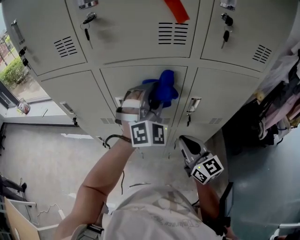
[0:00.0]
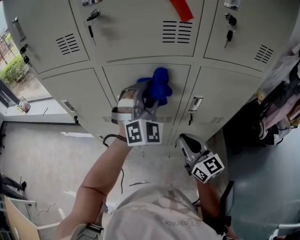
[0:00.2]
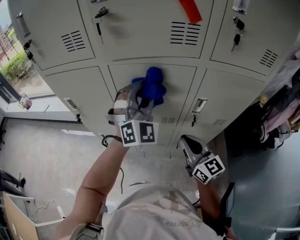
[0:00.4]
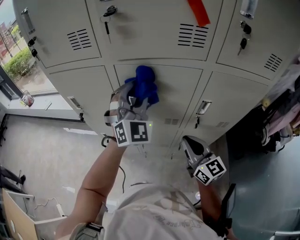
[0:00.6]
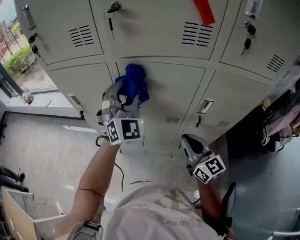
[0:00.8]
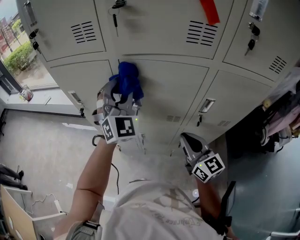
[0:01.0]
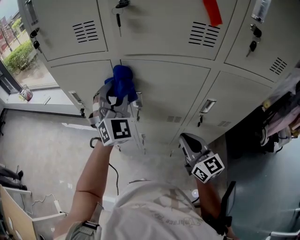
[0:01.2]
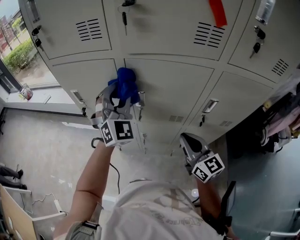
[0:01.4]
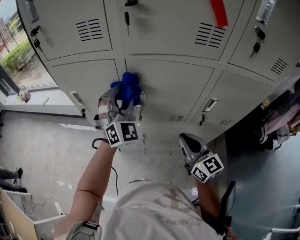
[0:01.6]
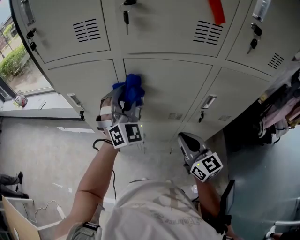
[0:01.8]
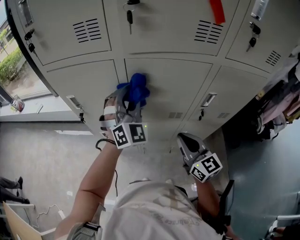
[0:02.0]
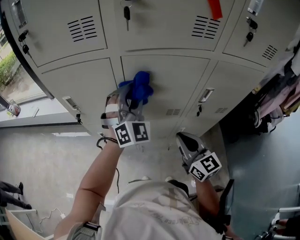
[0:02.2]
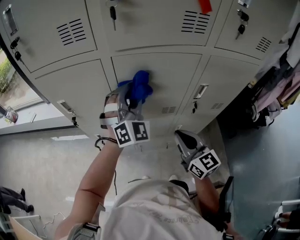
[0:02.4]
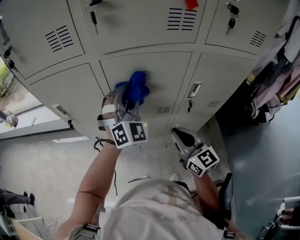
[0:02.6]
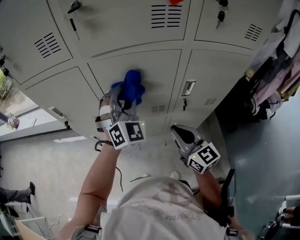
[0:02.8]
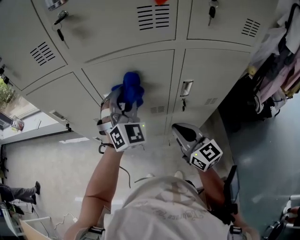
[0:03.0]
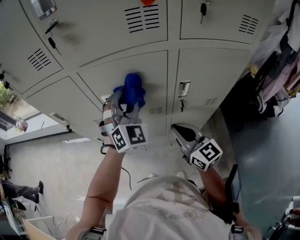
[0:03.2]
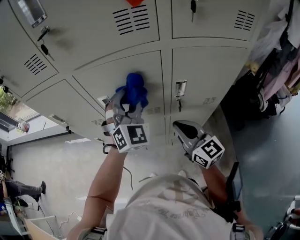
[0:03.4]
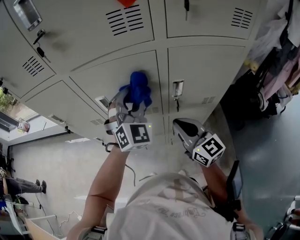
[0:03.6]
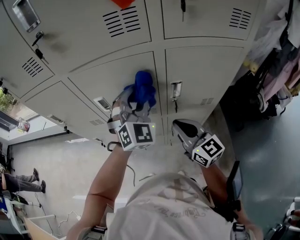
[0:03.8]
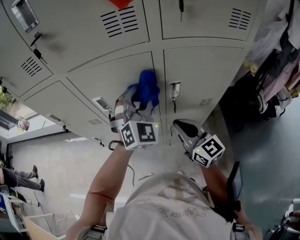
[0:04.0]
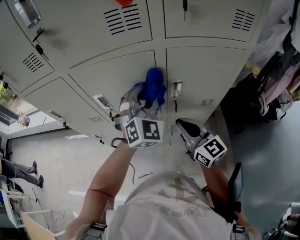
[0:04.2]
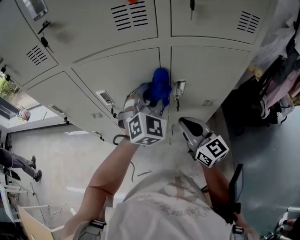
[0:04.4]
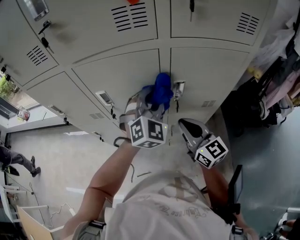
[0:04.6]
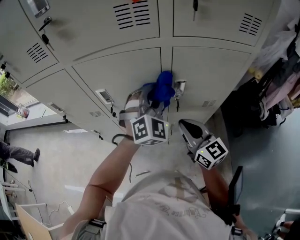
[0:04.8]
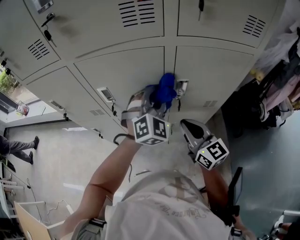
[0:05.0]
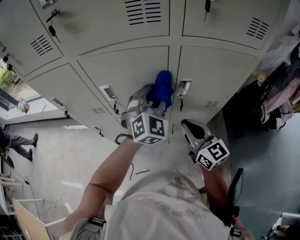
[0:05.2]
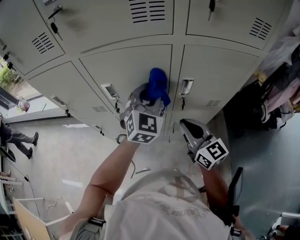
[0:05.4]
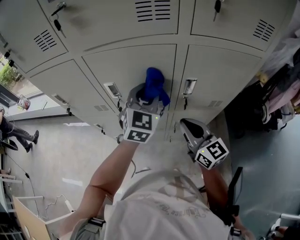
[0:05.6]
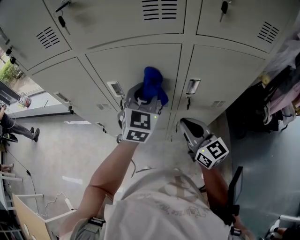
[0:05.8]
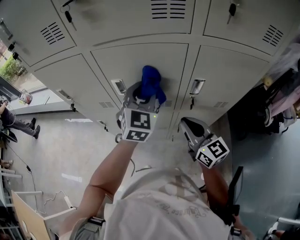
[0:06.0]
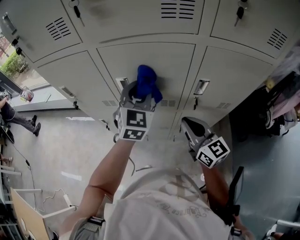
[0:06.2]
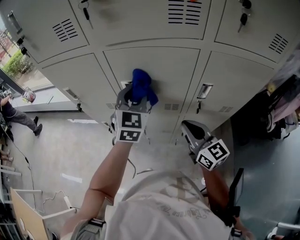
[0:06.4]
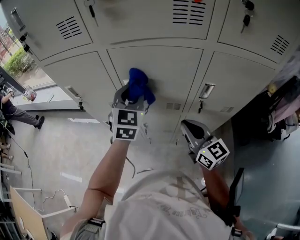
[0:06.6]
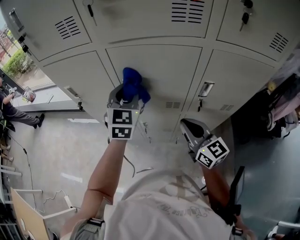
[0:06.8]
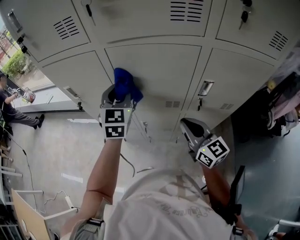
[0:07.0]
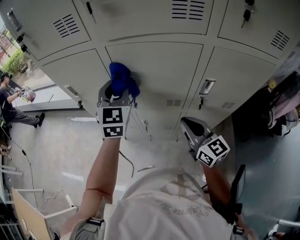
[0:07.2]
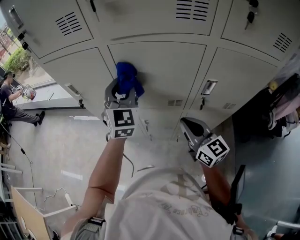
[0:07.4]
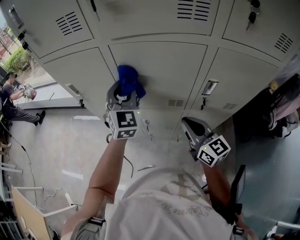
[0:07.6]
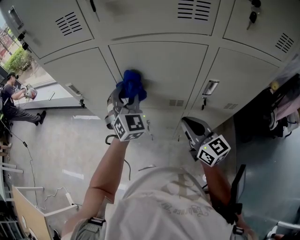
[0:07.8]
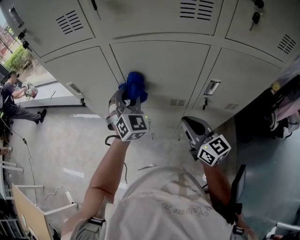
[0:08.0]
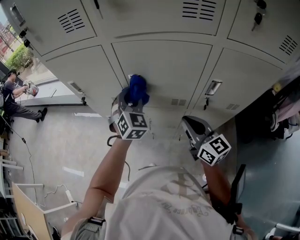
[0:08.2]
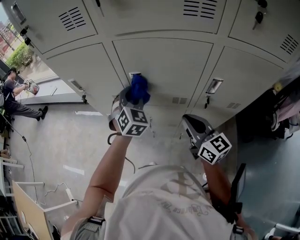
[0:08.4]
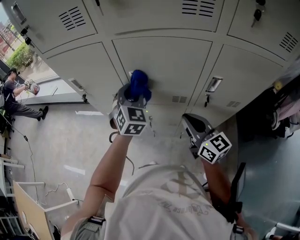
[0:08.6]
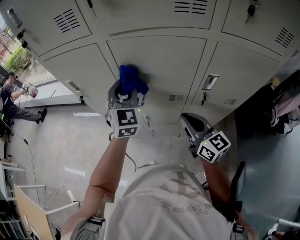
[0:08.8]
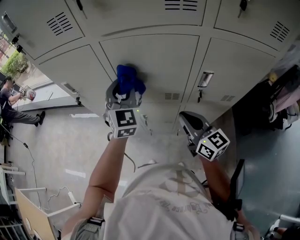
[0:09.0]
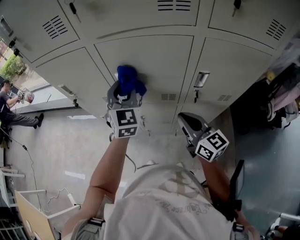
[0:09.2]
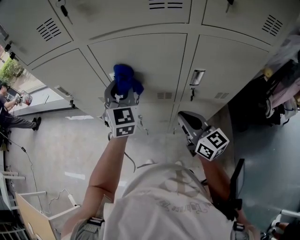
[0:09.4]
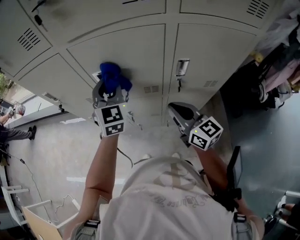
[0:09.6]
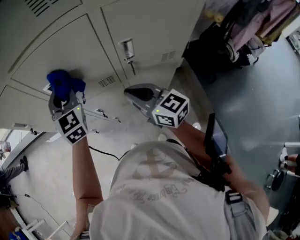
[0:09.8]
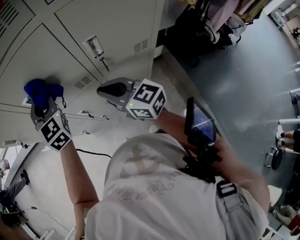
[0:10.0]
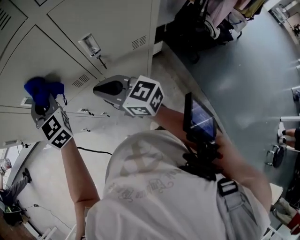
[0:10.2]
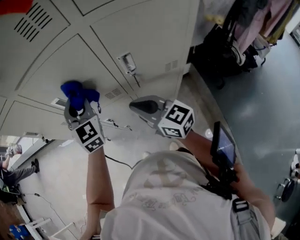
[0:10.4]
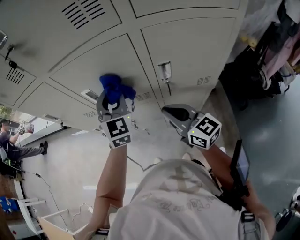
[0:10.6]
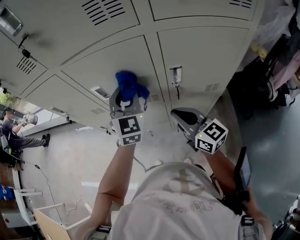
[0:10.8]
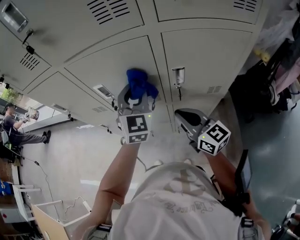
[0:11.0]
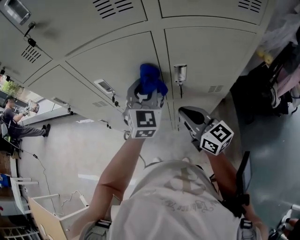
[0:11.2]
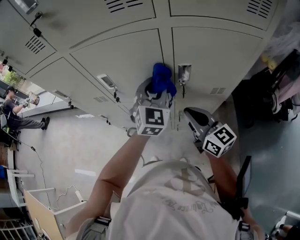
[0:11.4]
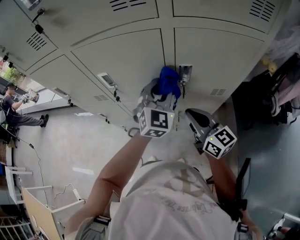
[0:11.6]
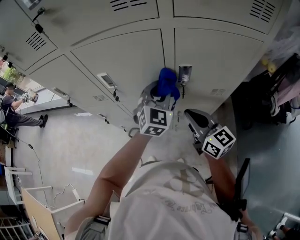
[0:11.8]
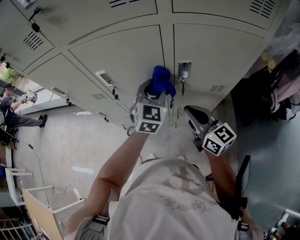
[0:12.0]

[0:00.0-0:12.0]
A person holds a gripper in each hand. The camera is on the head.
0:00.0 to 0:01.6: The right gripper travels to the left by roughly 5 cm; the left gripper is displaced to the left by about 20 cm.
0:01.6 to 0:03.0: The left gripper goes roughly 10 cm to the right.
0:03.0 to 0:04.4: The right gripper goes about 5 cm to the right. Meanwhile the left gripper moves to the right, about 15 cm.
0:04.4 to 0:06.0: The left gripper shifts about 10 cm to the left, and changes its angle by roughly 20 degrees.
0:06.0 to 0:07.6: The left gripper goes about 15 cm to the left.
0:07.6 to 0:09.0: The left gripper reaches roughly 10 cm downward, then returns.
0:09.0 to 0:10.4: The left gripper goes some 10 cm to the right.
0:10.4 to 0:12.0: The right gripper heads to the right, covering roughly 5 cm. The left gripper shifts about 10 cm to the right and downward.

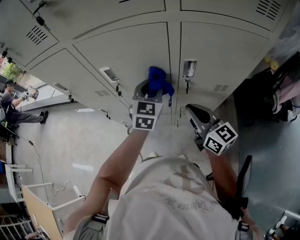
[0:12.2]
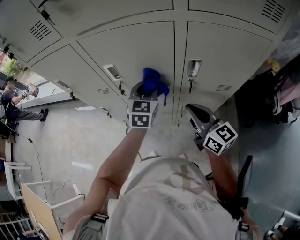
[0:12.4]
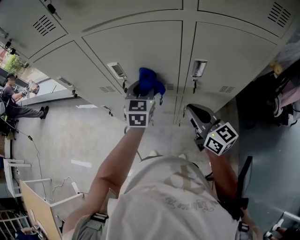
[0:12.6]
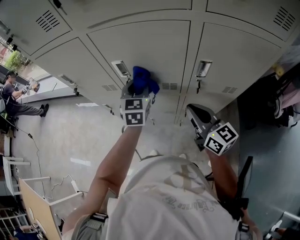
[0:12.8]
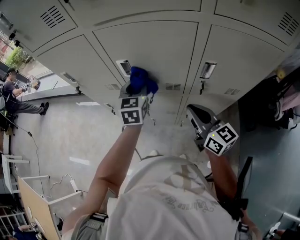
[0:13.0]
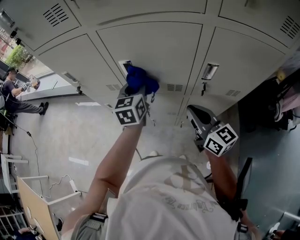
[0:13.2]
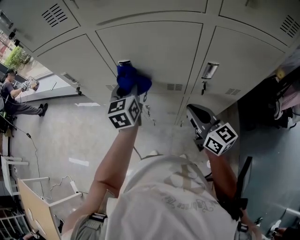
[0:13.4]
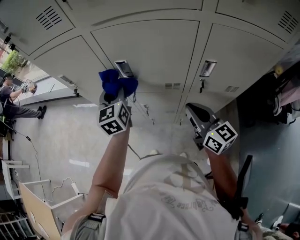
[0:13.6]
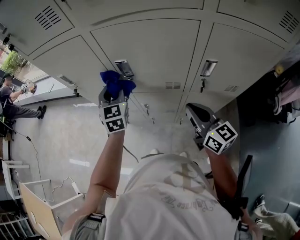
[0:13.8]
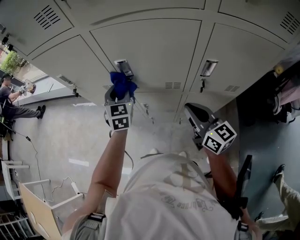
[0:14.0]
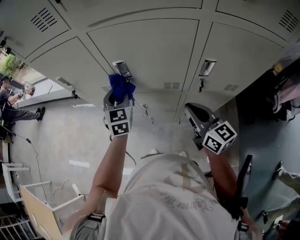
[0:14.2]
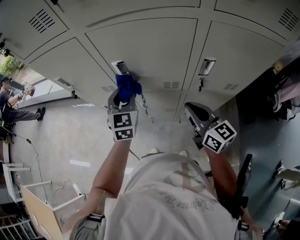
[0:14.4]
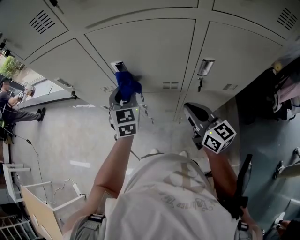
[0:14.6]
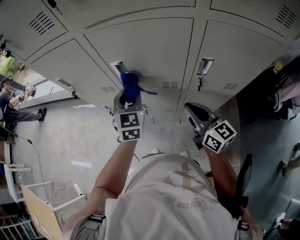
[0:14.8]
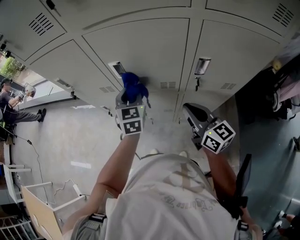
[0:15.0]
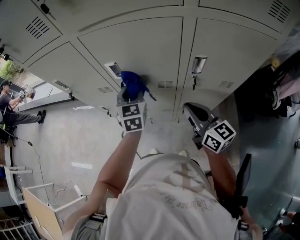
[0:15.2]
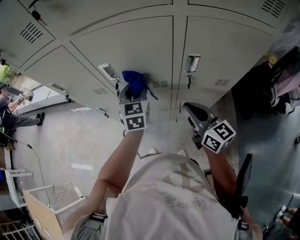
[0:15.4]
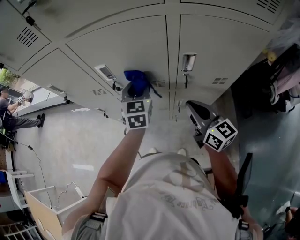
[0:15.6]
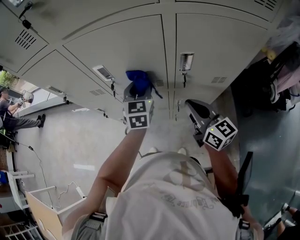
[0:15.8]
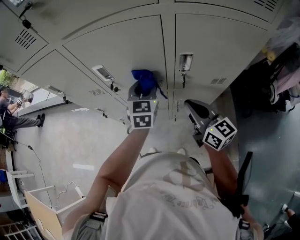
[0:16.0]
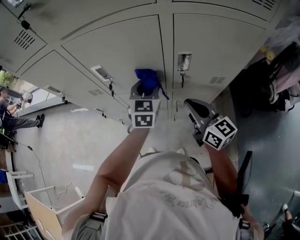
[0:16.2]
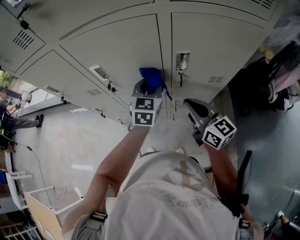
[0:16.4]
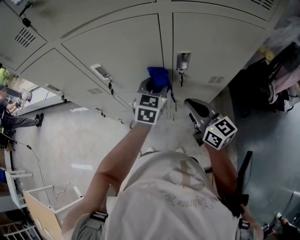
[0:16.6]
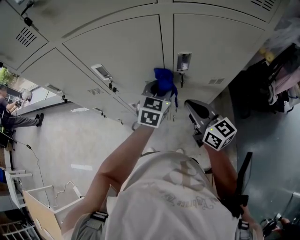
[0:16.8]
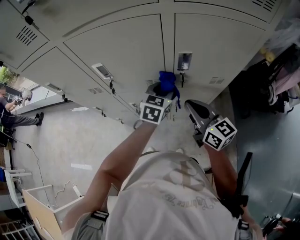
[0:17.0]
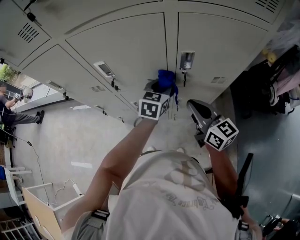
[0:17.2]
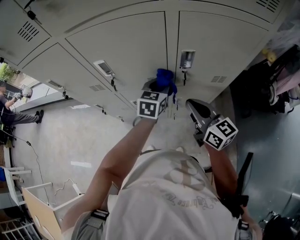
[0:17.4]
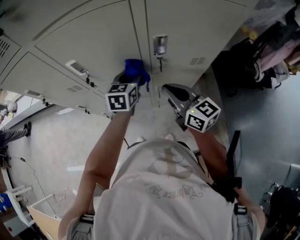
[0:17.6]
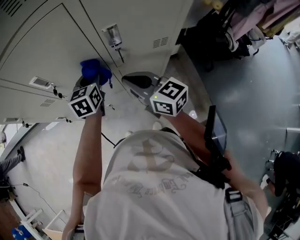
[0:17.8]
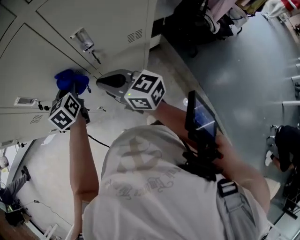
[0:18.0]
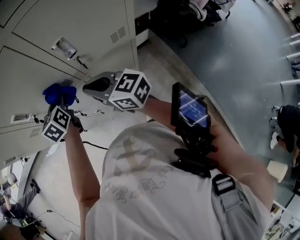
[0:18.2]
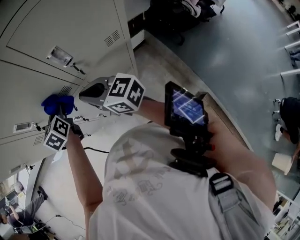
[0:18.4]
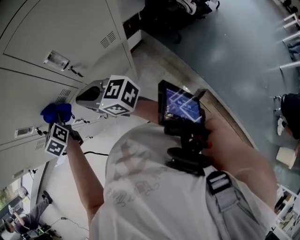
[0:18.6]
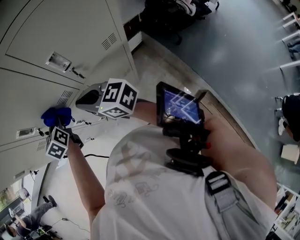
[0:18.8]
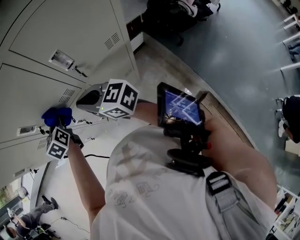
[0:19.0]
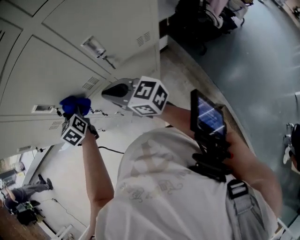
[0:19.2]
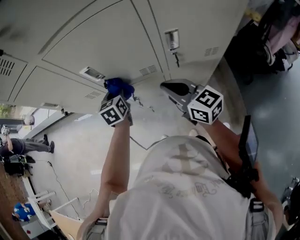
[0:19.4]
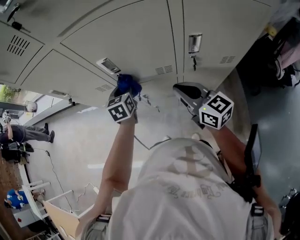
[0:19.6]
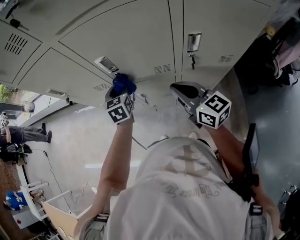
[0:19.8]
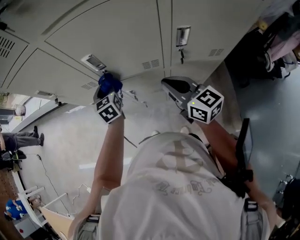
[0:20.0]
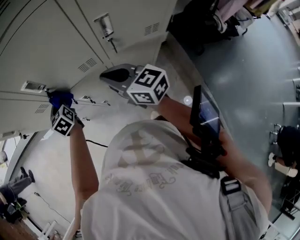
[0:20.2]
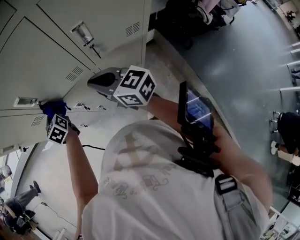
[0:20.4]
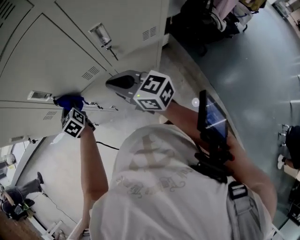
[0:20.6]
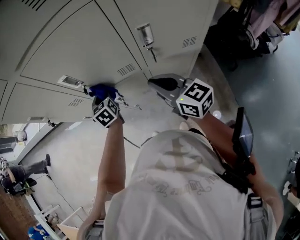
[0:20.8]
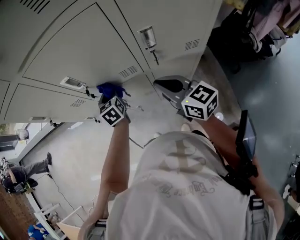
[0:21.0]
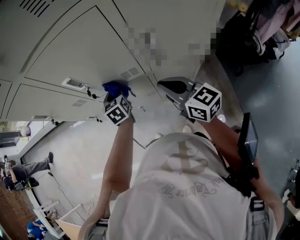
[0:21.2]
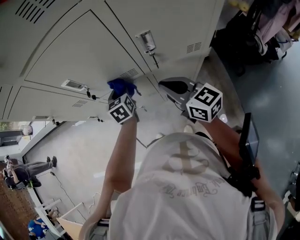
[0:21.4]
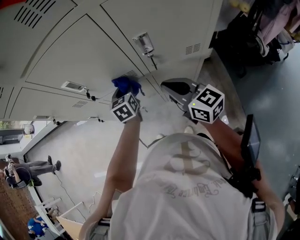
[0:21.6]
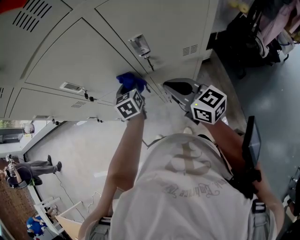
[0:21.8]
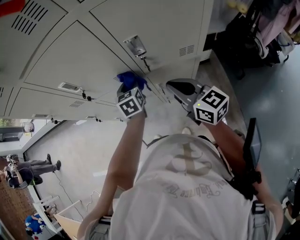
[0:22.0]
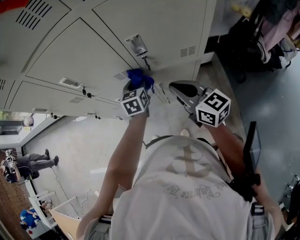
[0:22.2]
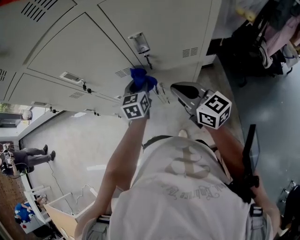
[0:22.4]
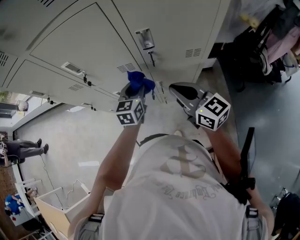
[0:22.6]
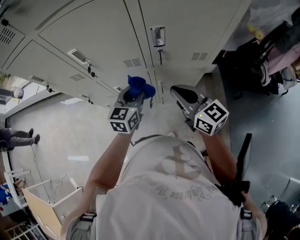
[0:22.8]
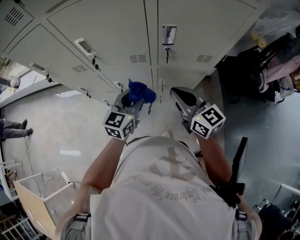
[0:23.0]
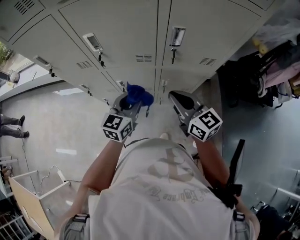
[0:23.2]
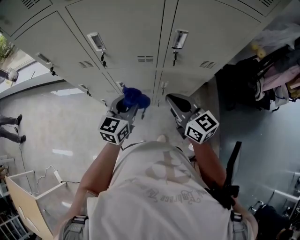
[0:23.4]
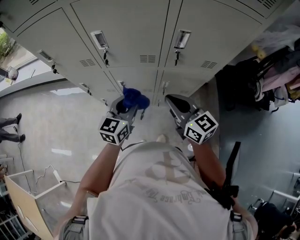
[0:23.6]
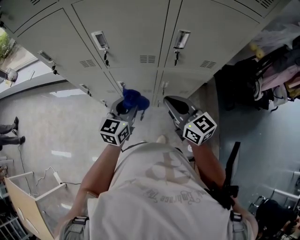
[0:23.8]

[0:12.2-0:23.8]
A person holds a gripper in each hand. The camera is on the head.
0:12.2 to 0:13.6: The right gripper is displaced to the left by about 5 cm; the left gripper moves to the left, some 20 cm, and turns by some 30 degrees.
0:13.6 to 0:15.0: The left gripper shifts some 10 cm to the right and downward.
0:15.0 to 0:16.6: The left gripper goes approximately 20 cm to the right, and changes its angle by about 20 degrees, while the right gripper heads to the right, covering roughly 5 cm.
0:16.6 to 0:18.0: The left gripper goes about 5 cm to the left.
0:18.0 to 0:19.4: The left gripper shifts roughly 15 cm to the left and downward.
0:19.4 to 0:21.0: The left gripper moves approximately 5 cm to the left and comes back.
0:21.0 to 0:22.4: The right gripper shifts some 10 cm to the right and backward, while the left gripper moves to the right and backward, about 20 cm.
0:22.4 to 0:23.8: The left gripper goes roughly 20 cm backward and to the left. The right gripper heads to the left, covering roughly 10 cm.
